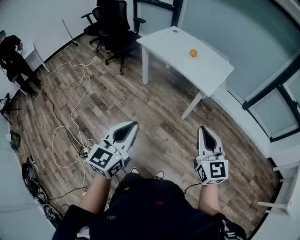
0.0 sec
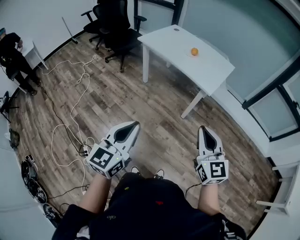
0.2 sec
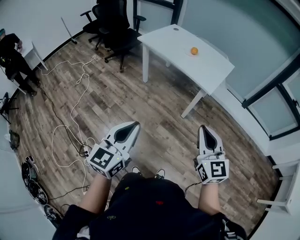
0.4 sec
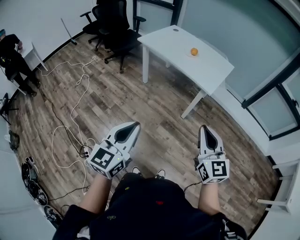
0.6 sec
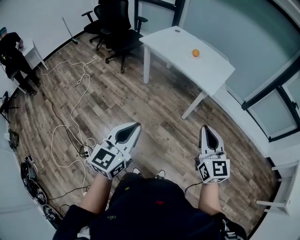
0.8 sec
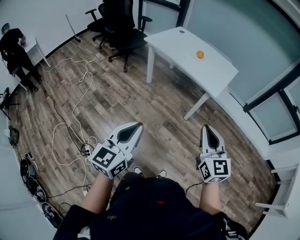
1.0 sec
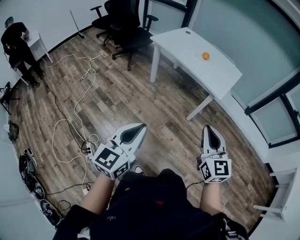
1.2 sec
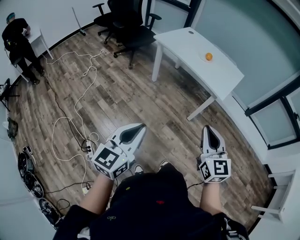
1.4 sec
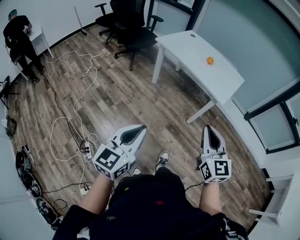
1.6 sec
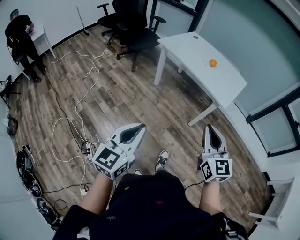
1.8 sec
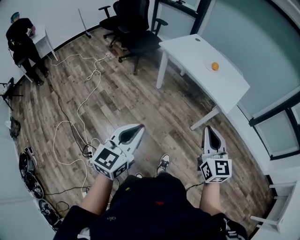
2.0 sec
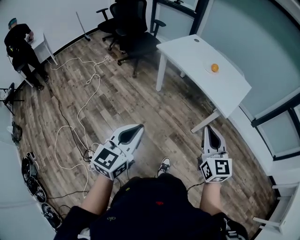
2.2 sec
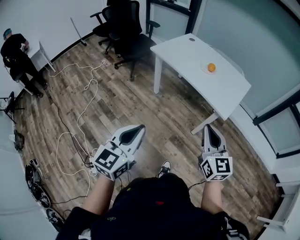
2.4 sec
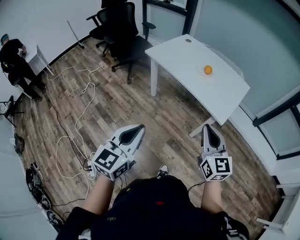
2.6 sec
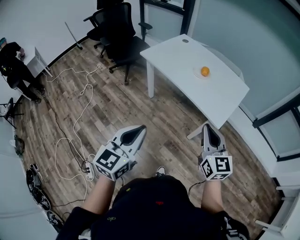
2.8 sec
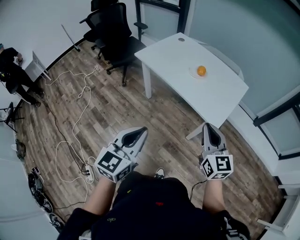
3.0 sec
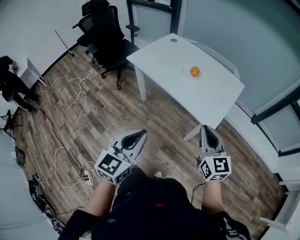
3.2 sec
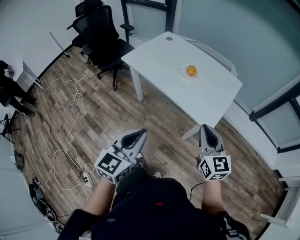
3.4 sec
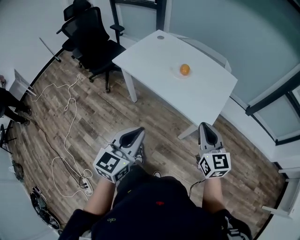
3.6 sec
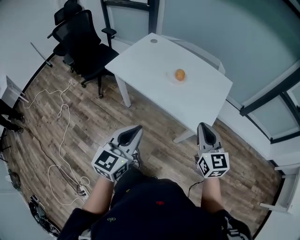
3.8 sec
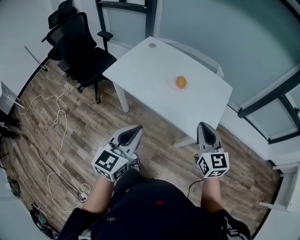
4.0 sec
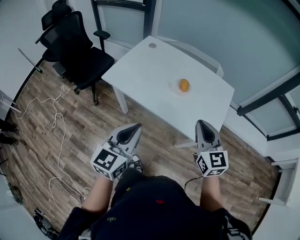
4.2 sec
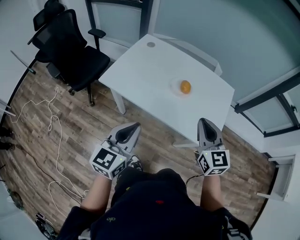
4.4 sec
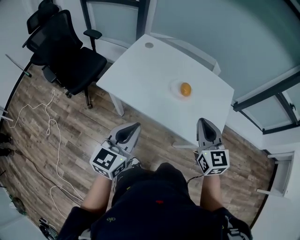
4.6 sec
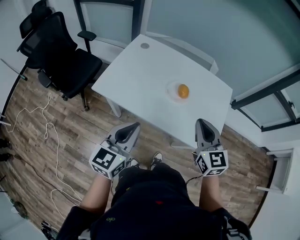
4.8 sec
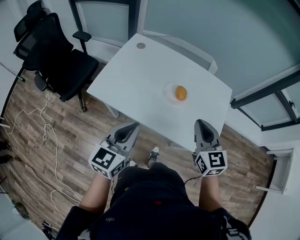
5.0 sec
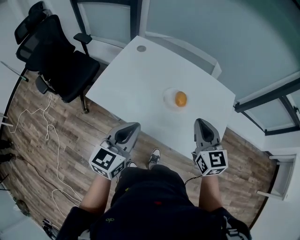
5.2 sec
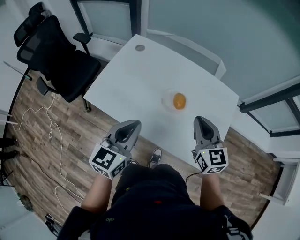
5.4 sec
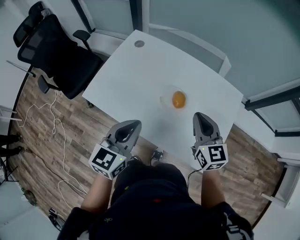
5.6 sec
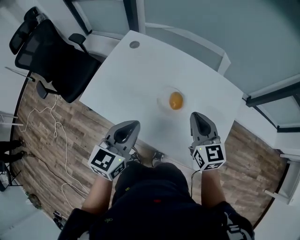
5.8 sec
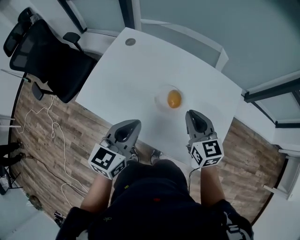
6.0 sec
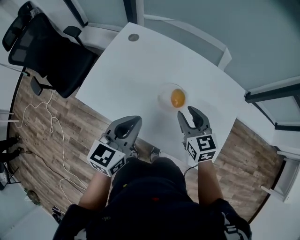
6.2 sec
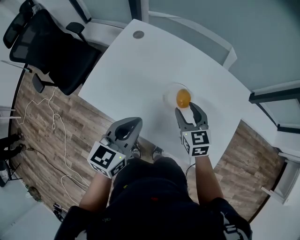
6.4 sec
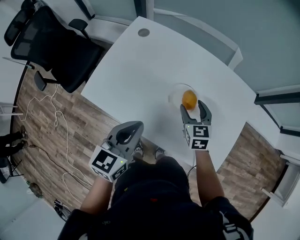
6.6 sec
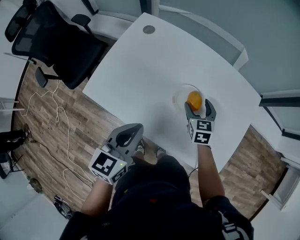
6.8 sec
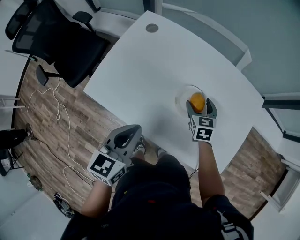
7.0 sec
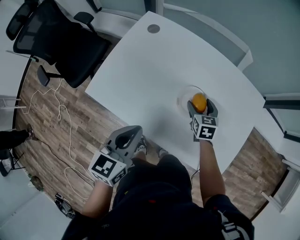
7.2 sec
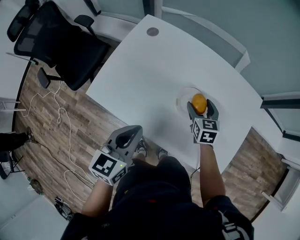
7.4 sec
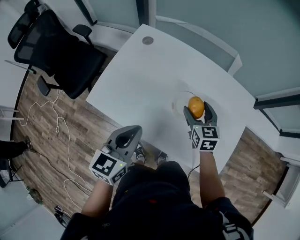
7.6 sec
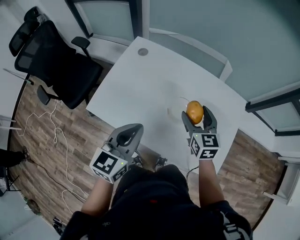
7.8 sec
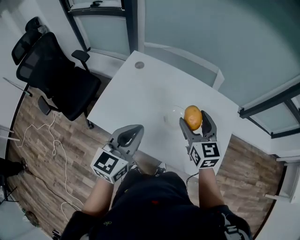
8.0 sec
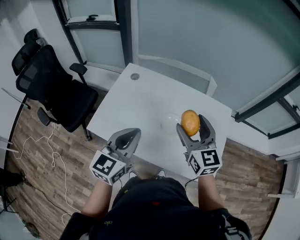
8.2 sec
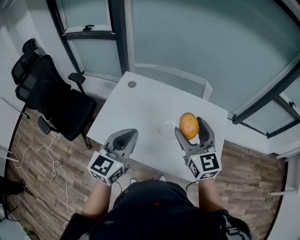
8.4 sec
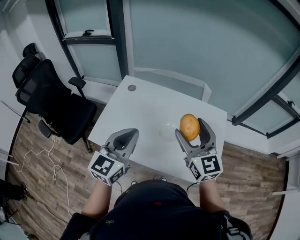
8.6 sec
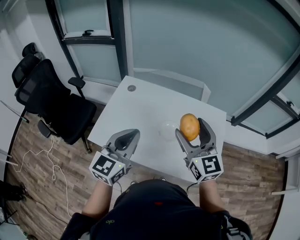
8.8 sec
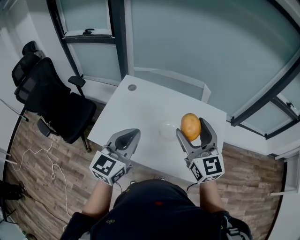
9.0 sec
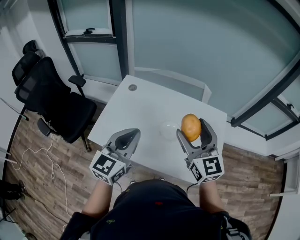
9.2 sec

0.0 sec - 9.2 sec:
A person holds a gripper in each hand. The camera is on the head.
0.0 sec - 1.6 sec: The grippers both shift to the left by roughly 10 cm.
1.6 sec - 3.0 sec: Both grippers travel together forward and to the right, some 35 cm.
3.0 sec - 4.6 sec: The left gripper moves forward, roughly 40 cm; the right gripper is displaced forward and to the left by roughly 35 cm.
4.6 sec - 6.2 sec: The left gripper goes roughly 25 cm forward and to the right. The right gripper is displaced forward and downward by about 25 cm.
6.2 sec - 7.6 sec: The left gripper moves to the left, about 5 cm. Meanwhile the right gripper heads forward, covering about 5 cm, moves about 15 cm downward and comes back, and opens.
7.6 sec - 9.2 sec: The left gripper goes roughly 15 cm upward, and rotates about 20 degrees. Meanwhile the right gripper heads upward and backward, covering roughly 30 cm, and rotates some 30 degrees.

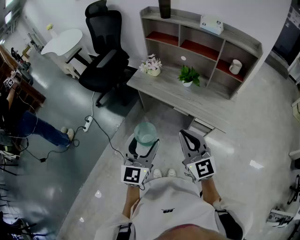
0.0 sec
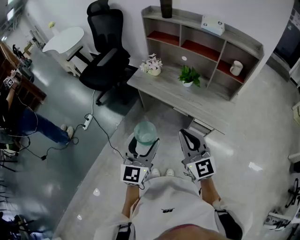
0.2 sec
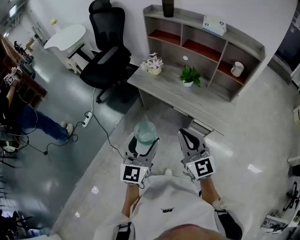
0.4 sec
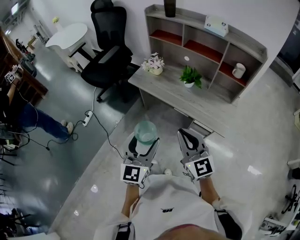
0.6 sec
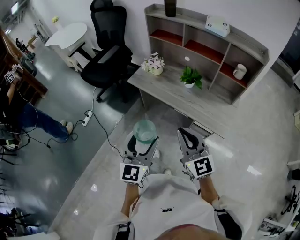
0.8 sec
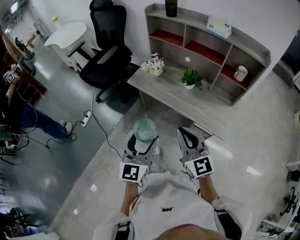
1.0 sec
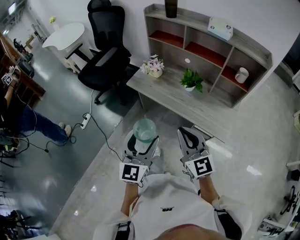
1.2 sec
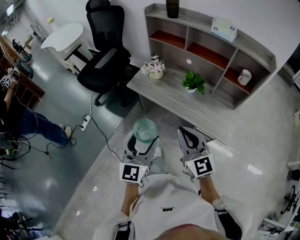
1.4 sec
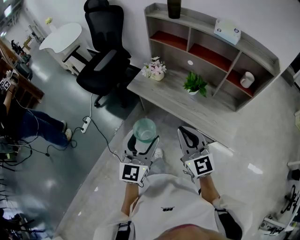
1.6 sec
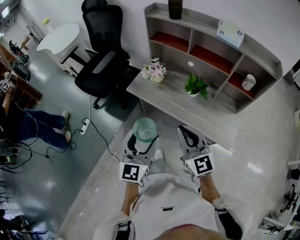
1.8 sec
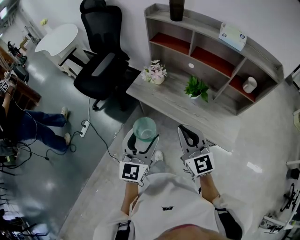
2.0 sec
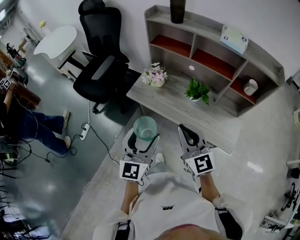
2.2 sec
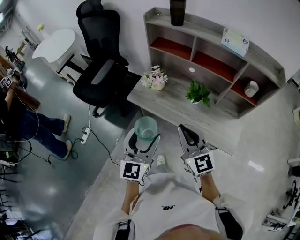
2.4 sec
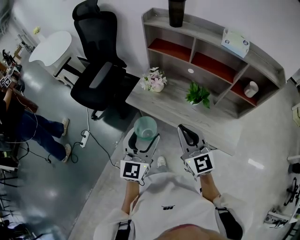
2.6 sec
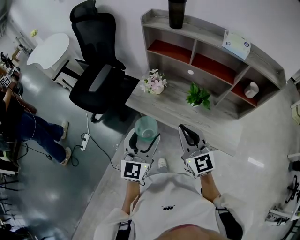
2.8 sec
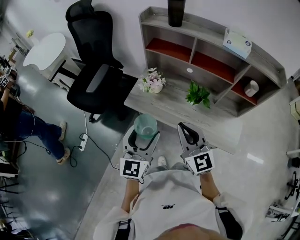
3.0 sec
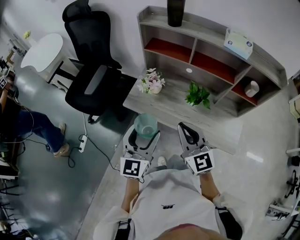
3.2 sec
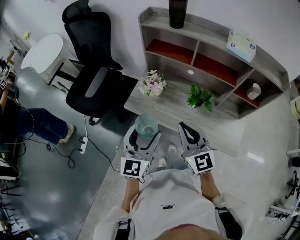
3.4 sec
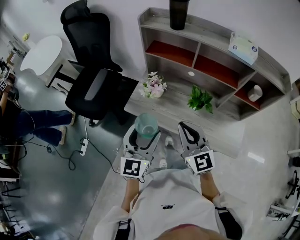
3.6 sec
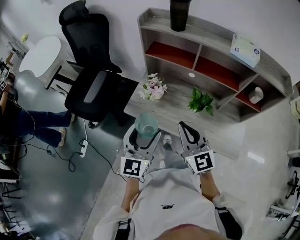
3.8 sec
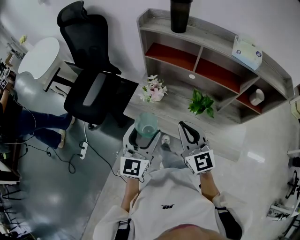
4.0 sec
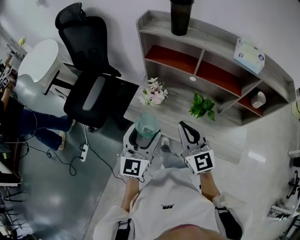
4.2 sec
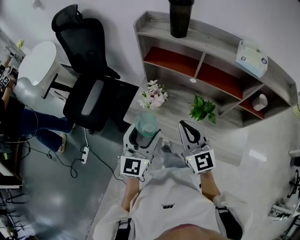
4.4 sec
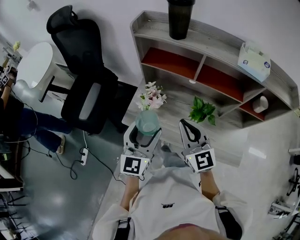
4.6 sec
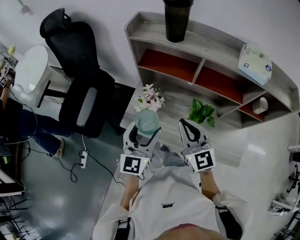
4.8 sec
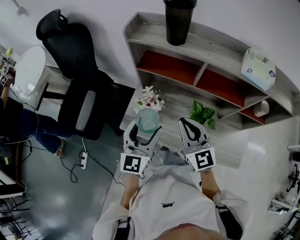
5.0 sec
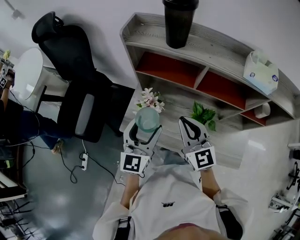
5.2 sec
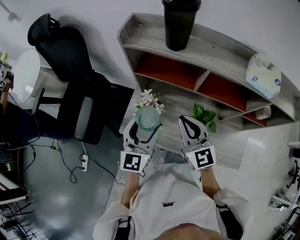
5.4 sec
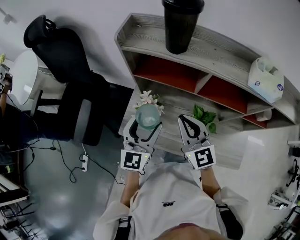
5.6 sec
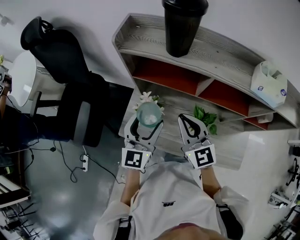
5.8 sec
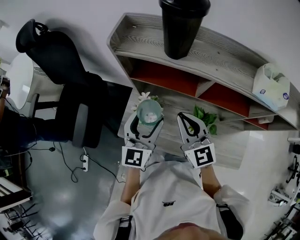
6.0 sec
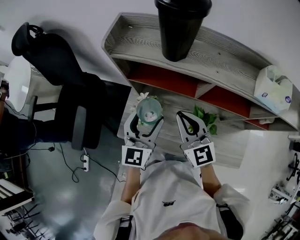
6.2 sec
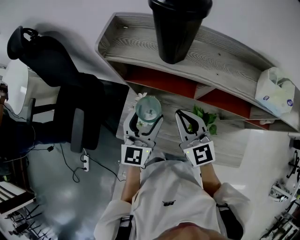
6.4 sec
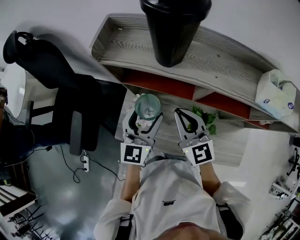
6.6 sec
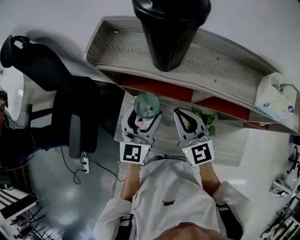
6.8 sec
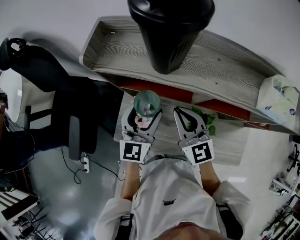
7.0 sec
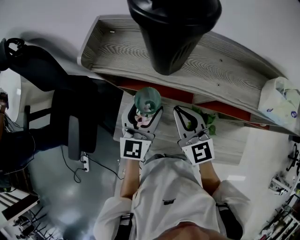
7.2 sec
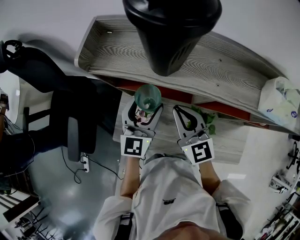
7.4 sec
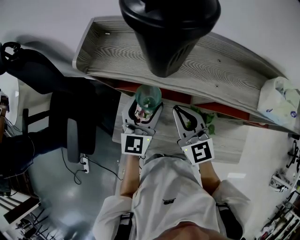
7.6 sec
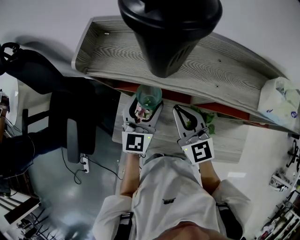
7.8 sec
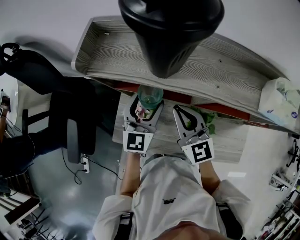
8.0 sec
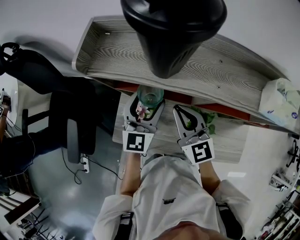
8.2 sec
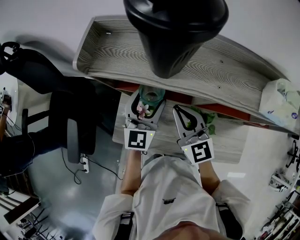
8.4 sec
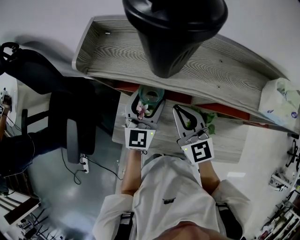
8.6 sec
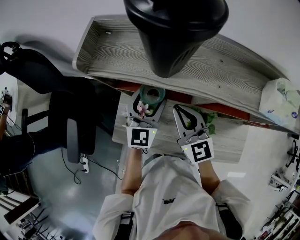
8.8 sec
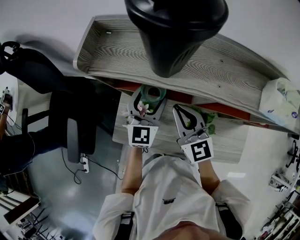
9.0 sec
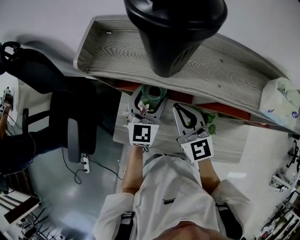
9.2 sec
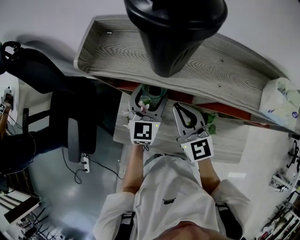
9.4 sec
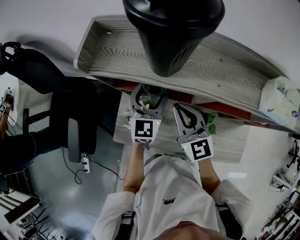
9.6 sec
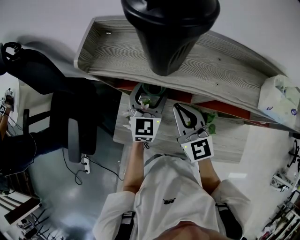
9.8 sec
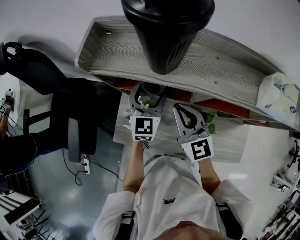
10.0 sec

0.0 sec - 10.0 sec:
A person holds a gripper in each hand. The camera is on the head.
0.0 sec - 1.4 sec: The grippers both shift forward by roughly 10 cm.
1.4 sec - 2.8 sec: The grippers both shift forward by roughly 15 cm.
2.8 sec - 4.2 sec: Both grippers travel together forward, about 15 cm.
4.2 sec - 5.8 sec: The grippers both shift forward by roughly 20 cm.
5.8 sec - 7.2 sec: The grippers both shift forward by roughly 10 cm.
7.2 sec - 8.6 sec: The grippers move only a little.
8.6 sec - 10.0 sec: There are only small adjustments of the grippers.

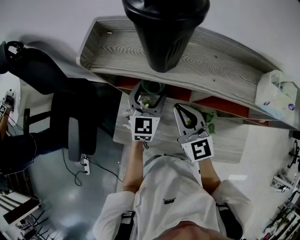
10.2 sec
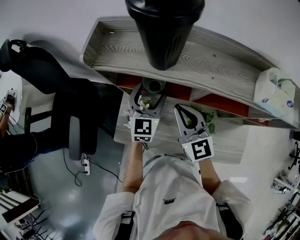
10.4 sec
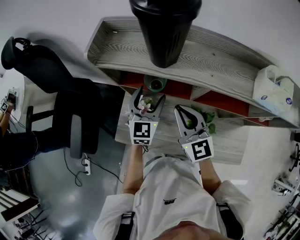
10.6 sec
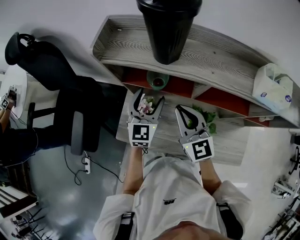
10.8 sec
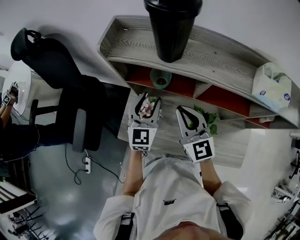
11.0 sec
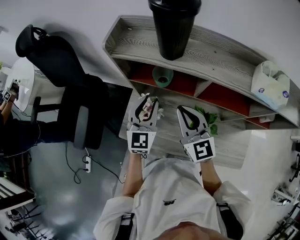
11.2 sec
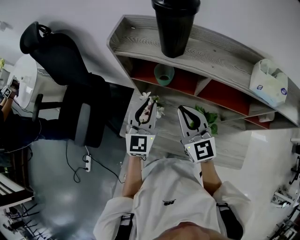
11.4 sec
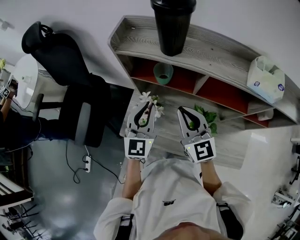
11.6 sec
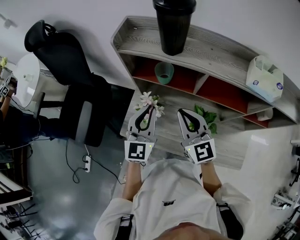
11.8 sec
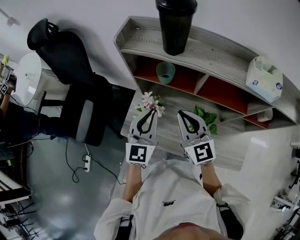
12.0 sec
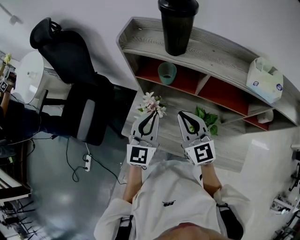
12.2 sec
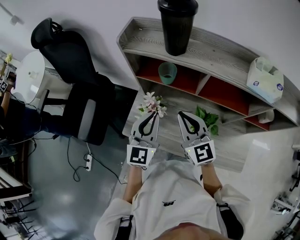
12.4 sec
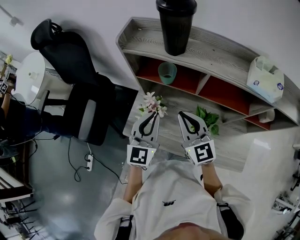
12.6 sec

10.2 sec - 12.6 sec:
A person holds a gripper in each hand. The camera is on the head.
10.2 sec - 11.4 sec: The left gripper shifts approximately 15 cm backward, upward and to the left, and closes up. Meanwhile the right gripper is displaced backward by about 5 cm.
11.4 sec - 12.6 sec: The left gripper heads backward, covering some 5 cm.

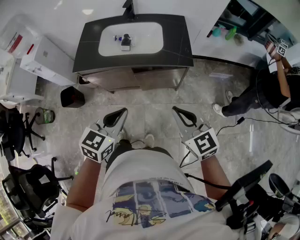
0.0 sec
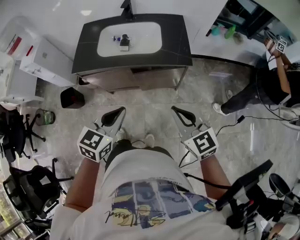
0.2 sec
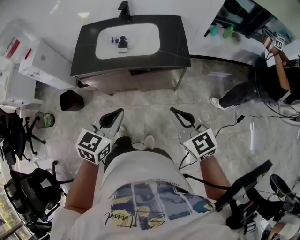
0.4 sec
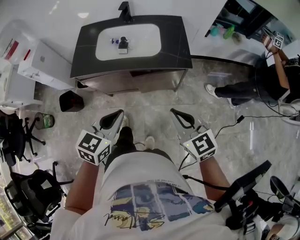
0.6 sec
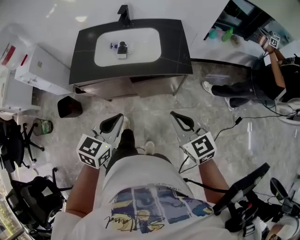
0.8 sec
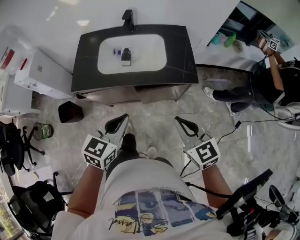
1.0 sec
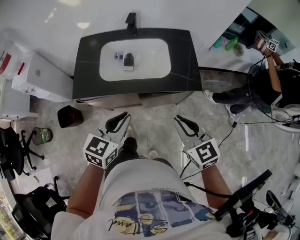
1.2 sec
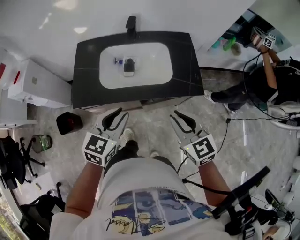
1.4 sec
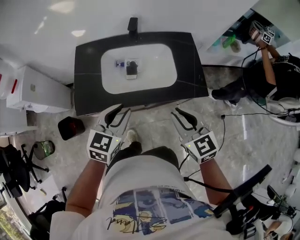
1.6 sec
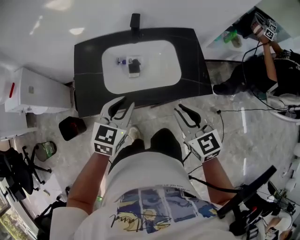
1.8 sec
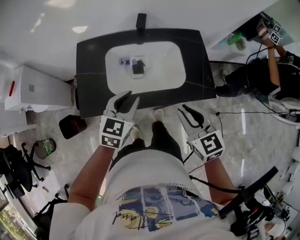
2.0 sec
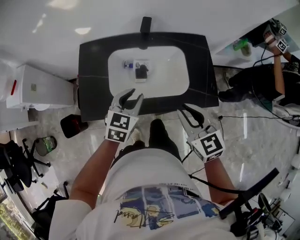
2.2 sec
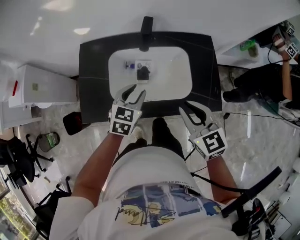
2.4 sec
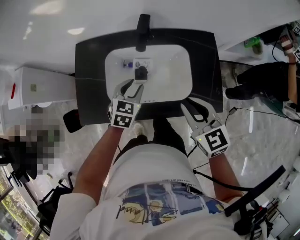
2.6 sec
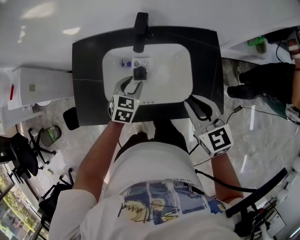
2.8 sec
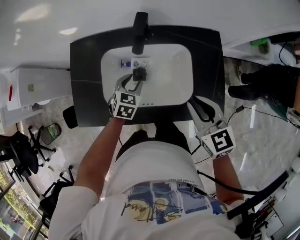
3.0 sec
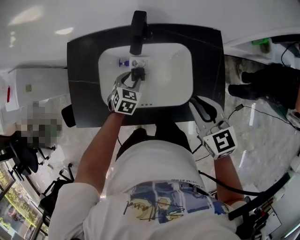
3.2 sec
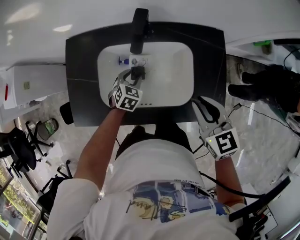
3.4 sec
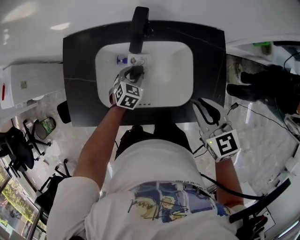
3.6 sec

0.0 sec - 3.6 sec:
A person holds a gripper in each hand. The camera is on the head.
0.0 sec - 1.8 sec: Both grippers move forward and to the left, about 30 cm. The left gripper opens its fingers.
1.8 sec - 3.6 sec: The right gripper shifts approximately 20 cm forward and to the right; the left gripper goes roughly 35 cm downward and forward, and turns by about 30 degrees.
